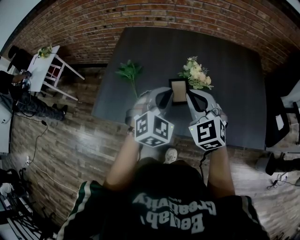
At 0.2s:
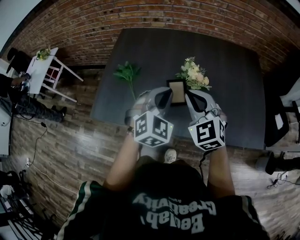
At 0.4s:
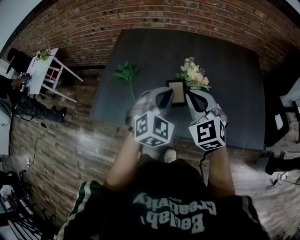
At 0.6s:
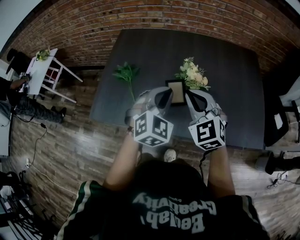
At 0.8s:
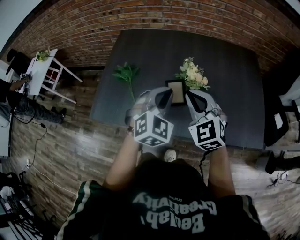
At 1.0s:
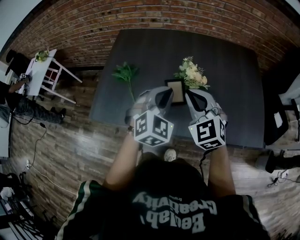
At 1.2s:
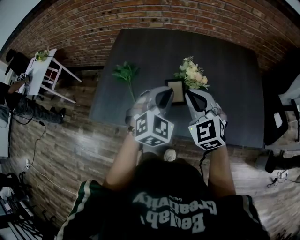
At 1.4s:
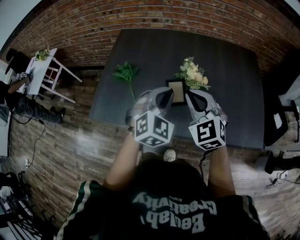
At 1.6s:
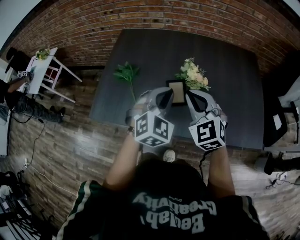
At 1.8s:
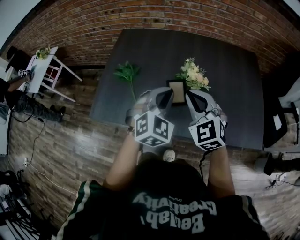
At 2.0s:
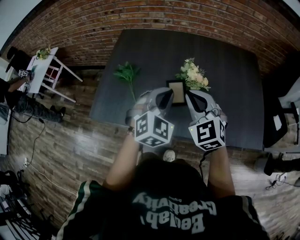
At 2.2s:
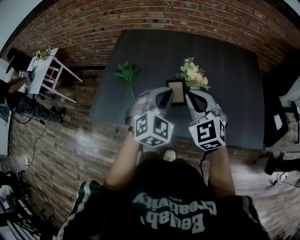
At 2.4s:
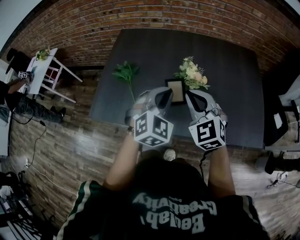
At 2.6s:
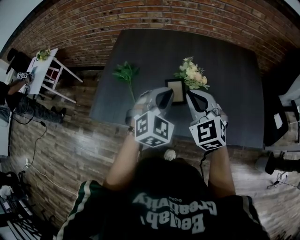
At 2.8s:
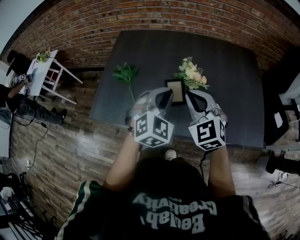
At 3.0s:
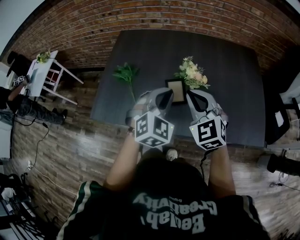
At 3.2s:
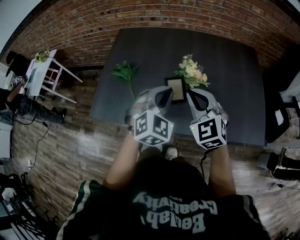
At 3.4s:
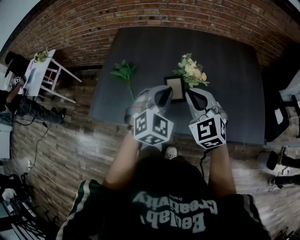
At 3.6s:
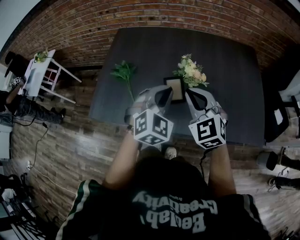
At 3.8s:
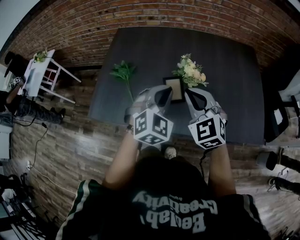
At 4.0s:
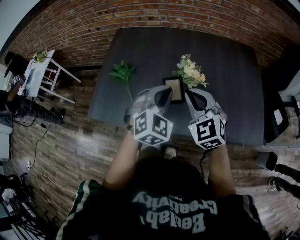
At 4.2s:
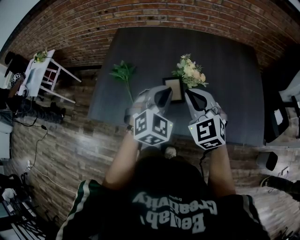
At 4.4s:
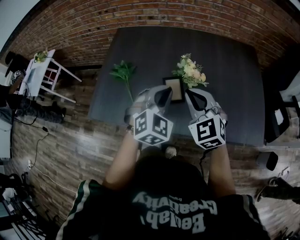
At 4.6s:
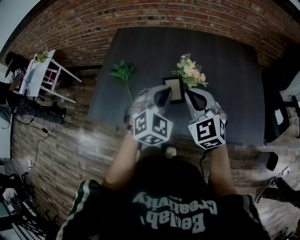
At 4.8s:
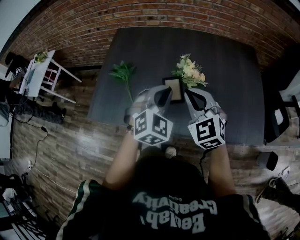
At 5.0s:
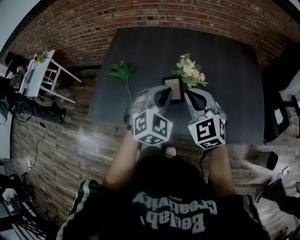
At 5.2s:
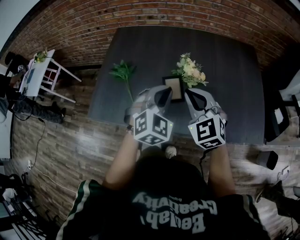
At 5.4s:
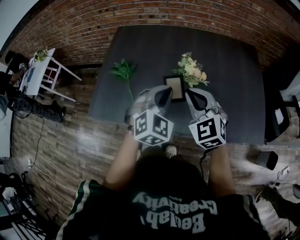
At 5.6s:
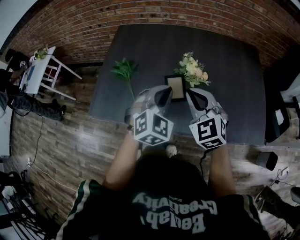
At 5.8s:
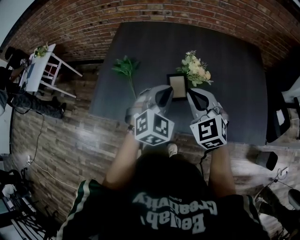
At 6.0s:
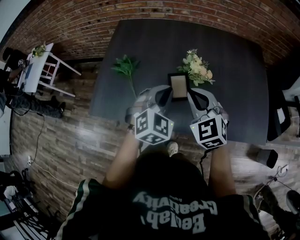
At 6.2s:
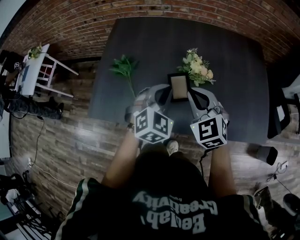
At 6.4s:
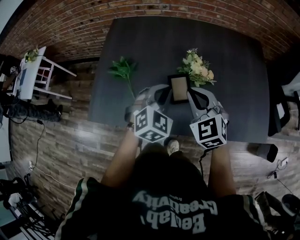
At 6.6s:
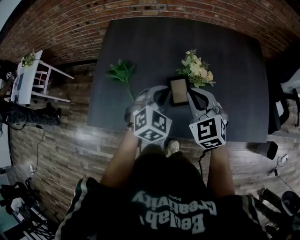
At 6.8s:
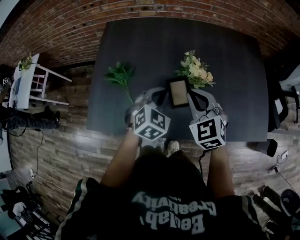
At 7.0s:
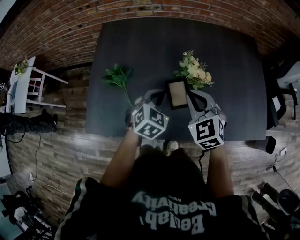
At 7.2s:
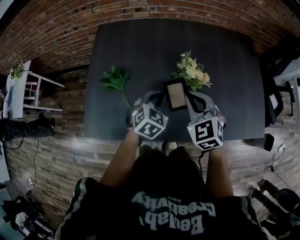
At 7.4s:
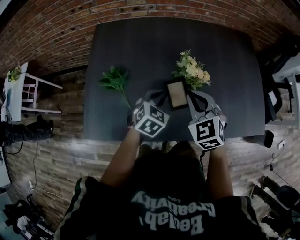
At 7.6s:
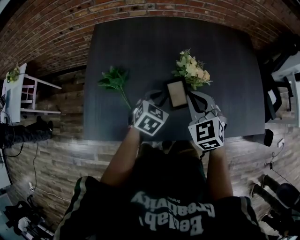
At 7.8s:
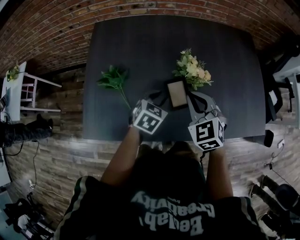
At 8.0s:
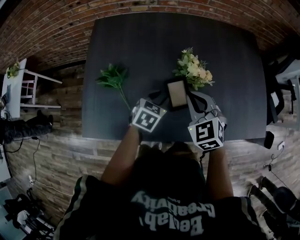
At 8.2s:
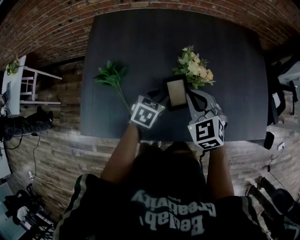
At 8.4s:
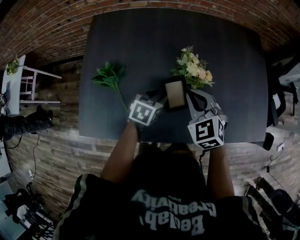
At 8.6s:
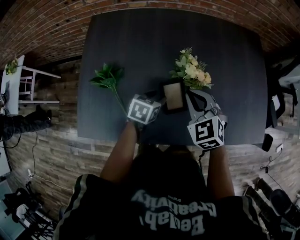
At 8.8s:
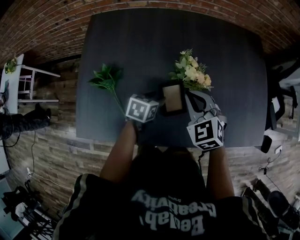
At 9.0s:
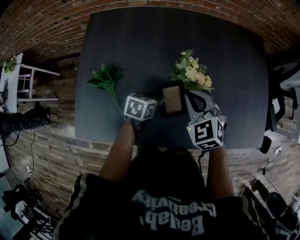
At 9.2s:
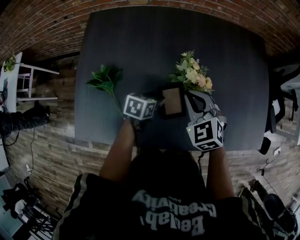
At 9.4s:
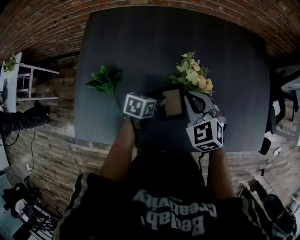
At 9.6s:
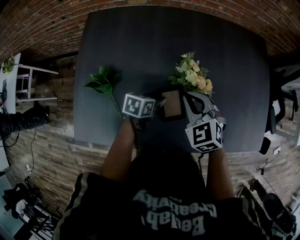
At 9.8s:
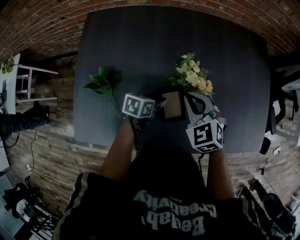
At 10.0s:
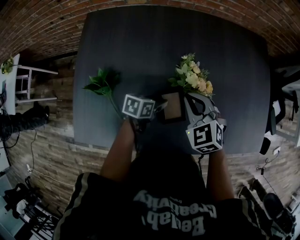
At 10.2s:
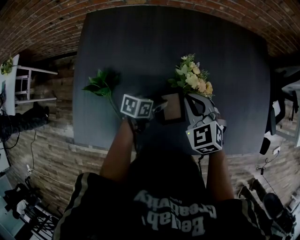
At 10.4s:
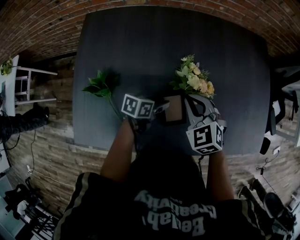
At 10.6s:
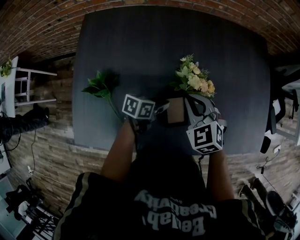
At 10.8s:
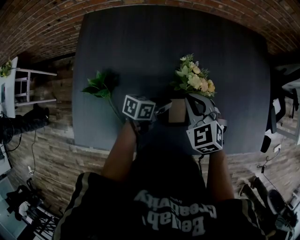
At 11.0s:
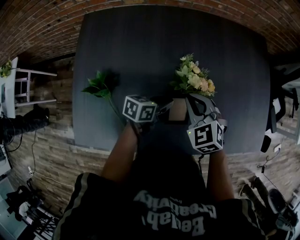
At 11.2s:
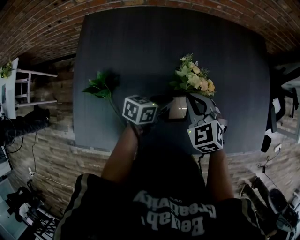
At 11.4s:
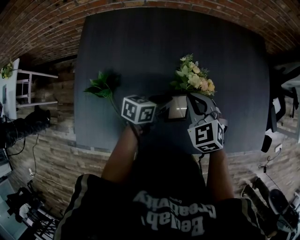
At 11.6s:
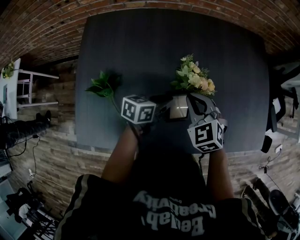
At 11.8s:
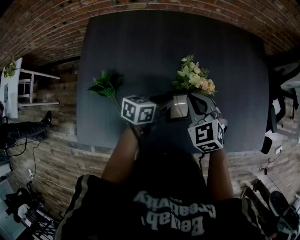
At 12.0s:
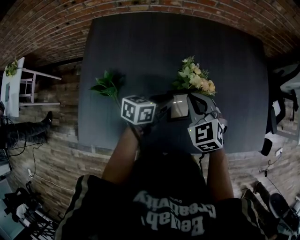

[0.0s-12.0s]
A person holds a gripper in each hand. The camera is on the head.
0.0s to 6.0s: The grippers stay close to where they were, moving slightly.
6.0s to 7.6s: The left gripper travels downward and forward by approximately 15 cm, rotates about 30 degrees, and opens. The right gripper goes about 5 cm forward.
7.6s to 9.0s: The left gripper shifts roughly 10 cm downward and forward, rotates roughly 30 degrees, and opens. Meanwhile the right gripper heads forward, covering roughly 5 cm.
9.0s to 10.4s: The left gripper turns by about 20 degrees.
10.4s to 12.0s: The left gripper travels upward by approximately 10 cm, and closes up.

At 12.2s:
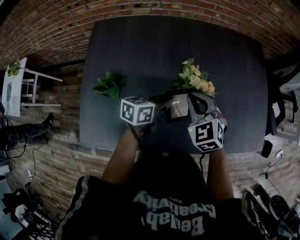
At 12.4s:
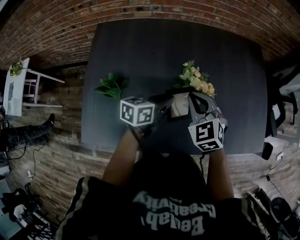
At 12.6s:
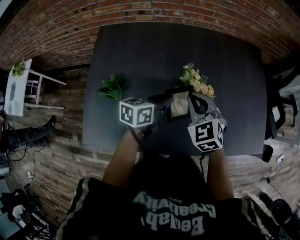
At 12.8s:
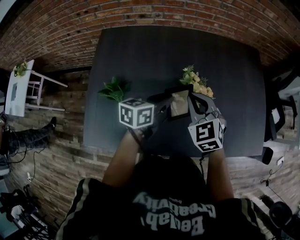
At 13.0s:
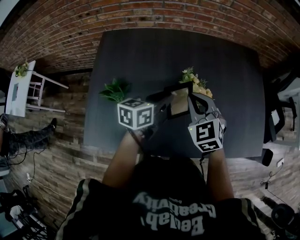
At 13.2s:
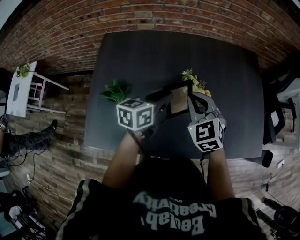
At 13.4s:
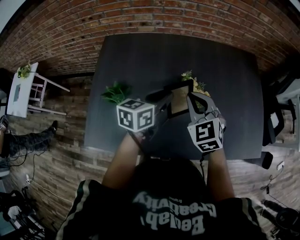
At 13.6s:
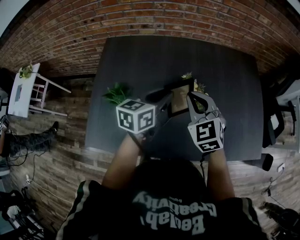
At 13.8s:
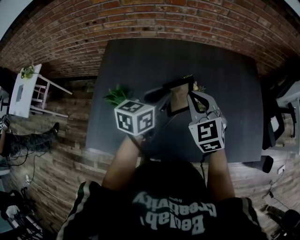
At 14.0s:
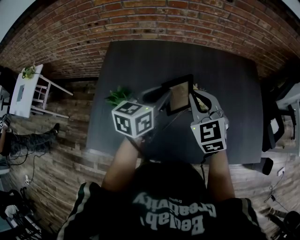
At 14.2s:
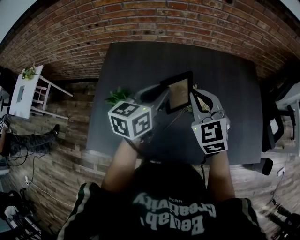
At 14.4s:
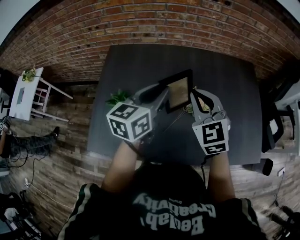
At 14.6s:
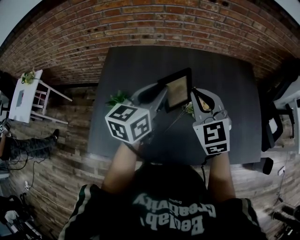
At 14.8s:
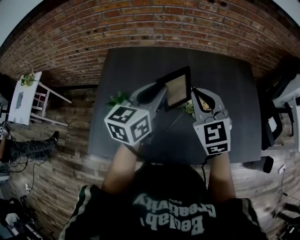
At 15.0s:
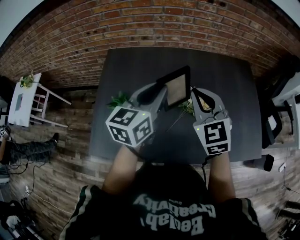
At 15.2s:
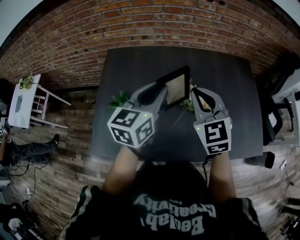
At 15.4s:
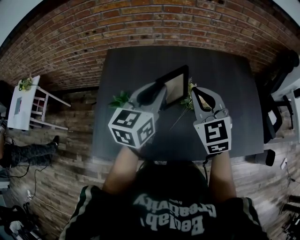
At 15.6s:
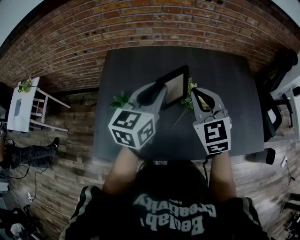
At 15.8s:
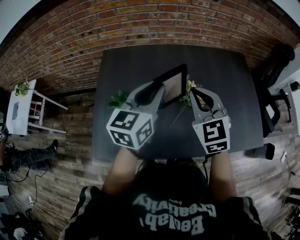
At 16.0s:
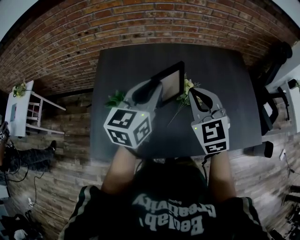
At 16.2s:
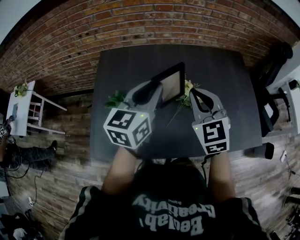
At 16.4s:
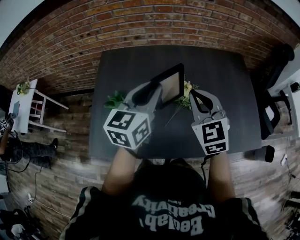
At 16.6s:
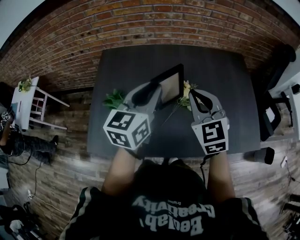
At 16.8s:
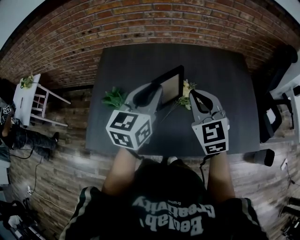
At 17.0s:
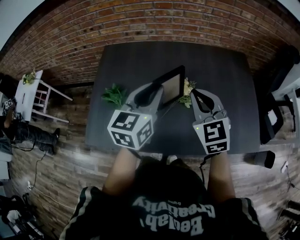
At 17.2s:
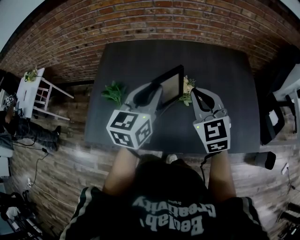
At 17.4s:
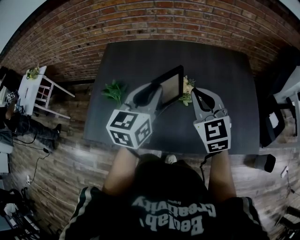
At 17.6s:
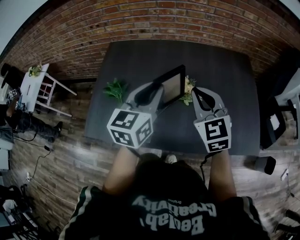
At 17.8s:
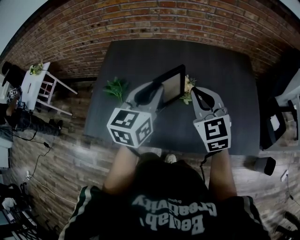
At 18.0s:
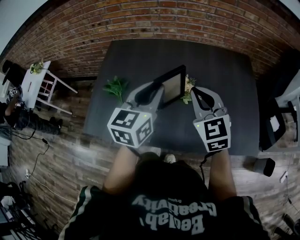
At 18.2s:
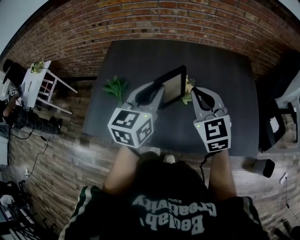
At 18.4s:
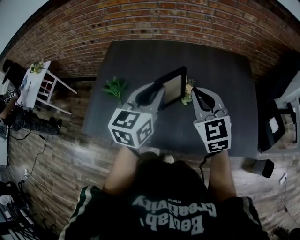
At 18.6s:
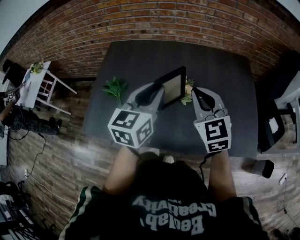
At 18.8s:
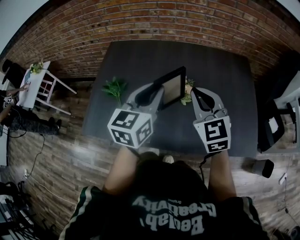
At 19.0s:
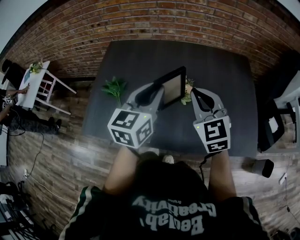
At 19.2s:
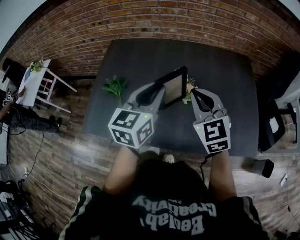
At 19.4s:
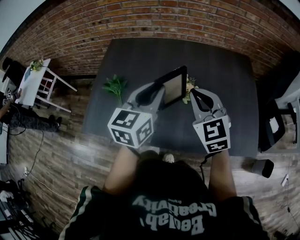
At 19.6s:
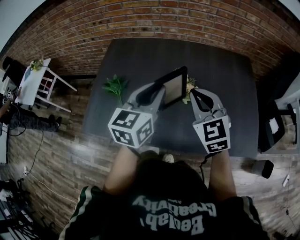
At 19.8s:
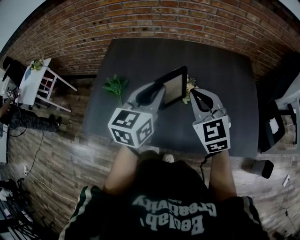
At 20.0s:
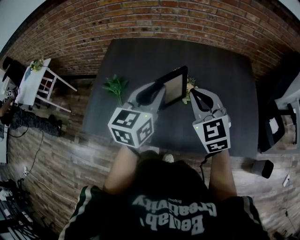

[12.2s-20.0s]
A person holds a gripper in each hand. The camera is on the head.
12.2s to 13.8s: The two grippers go some 15 cm upward. The left gripper rotates roughly 20 degrees.
13.8s to 15.4s: The left gripper goes roughly 10 cm upward and to the left. The right gripper heads upward, covering roughly 5 cm.
15.4s to 16.8s: The grippers both shift to the right by approximately 5 cm.
16.8s to 18.4s: The right gripper moves to the right, some 5 cm. Meanwhile the left gripper shifts about 10 cm to the right and backward.
18.4s to 20.0s: The two grippers keep their place.

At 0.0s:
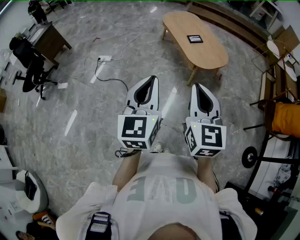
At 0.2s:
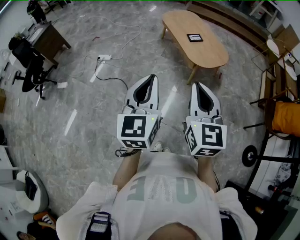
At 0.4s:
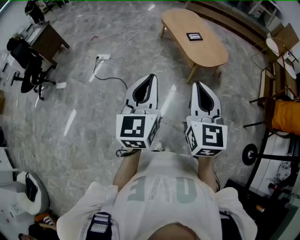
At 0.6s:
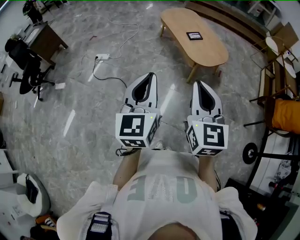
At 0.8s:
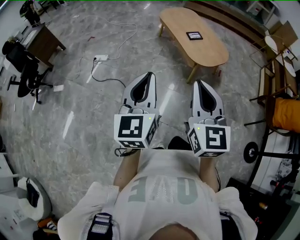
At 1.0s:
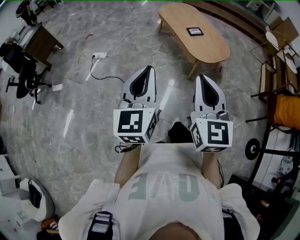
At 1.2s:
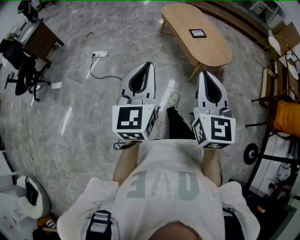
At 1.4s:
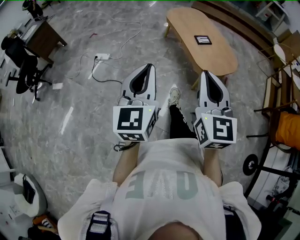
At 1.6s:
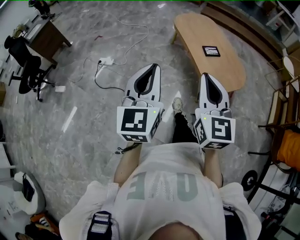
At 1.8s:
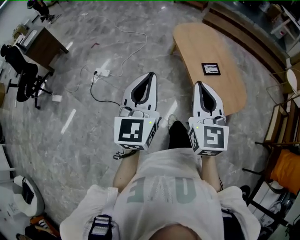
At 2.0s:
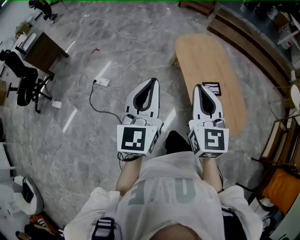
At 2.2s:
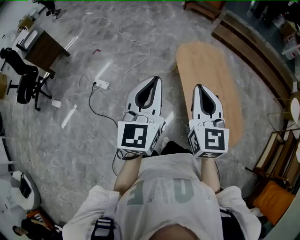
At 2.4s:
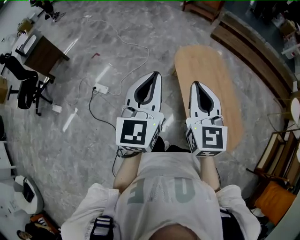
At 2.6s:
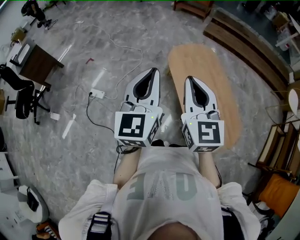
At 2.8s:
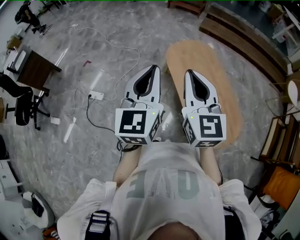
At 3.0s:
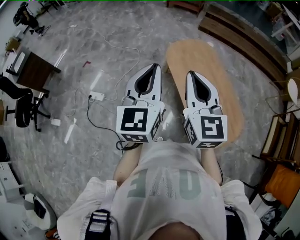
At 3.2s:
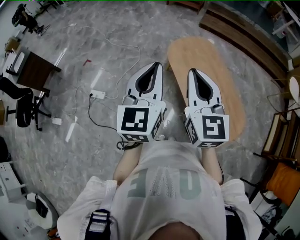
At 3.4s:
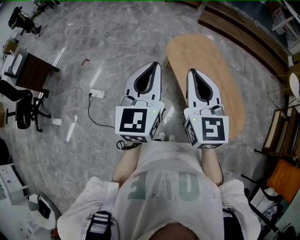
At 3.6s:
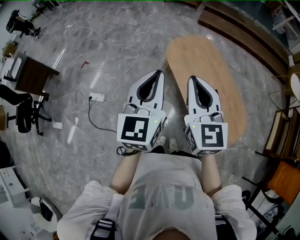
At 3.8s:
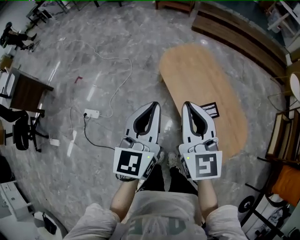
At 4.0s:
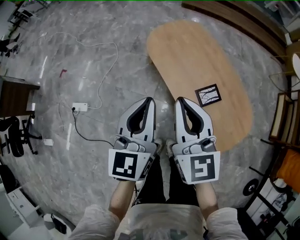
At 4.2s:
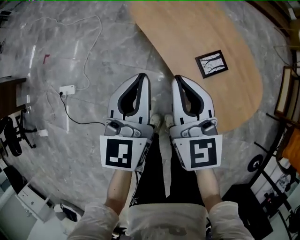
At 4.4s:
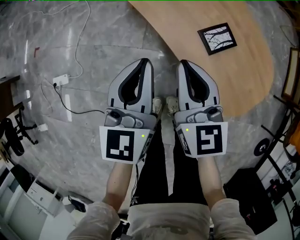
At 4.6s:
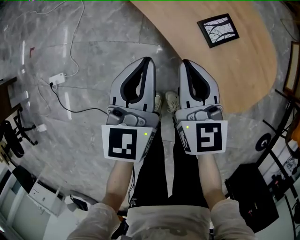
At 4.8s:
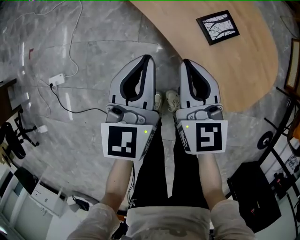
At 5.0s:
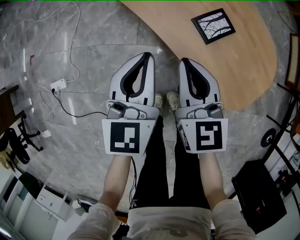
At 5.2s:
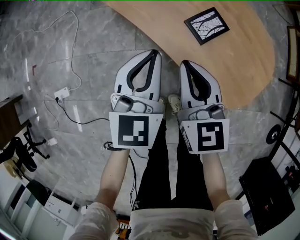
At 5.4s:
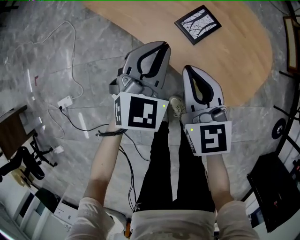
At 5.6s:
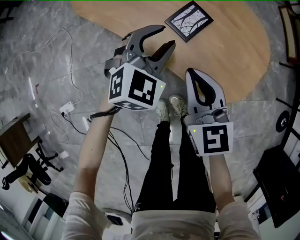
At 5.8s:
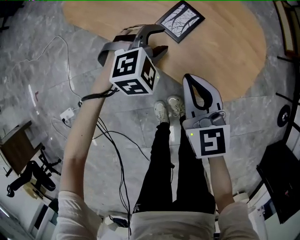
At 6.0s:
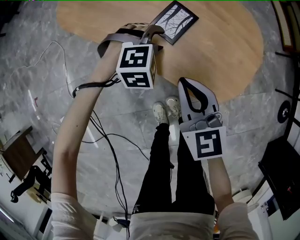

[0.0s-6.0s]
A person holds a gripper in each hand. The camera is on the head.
0.0s to 1.6s: The two grippers go some 25 cm forward.
1.6s to 3.0s: The pair of grippers is taken forward, roughly 50 cm.
3.0s to 4.4s: Both grippers travel together downward, about 35 cm. The left gripper turns by about 20 degrees, while the right gripper rotates approximately 20 degrees.
4.4s to 6.0s: The right gripper moves roughly 15 cm; the left gripper heads downward, covering some 20 cm, points its fingers roughly 50 degrees further downward, and opens.
